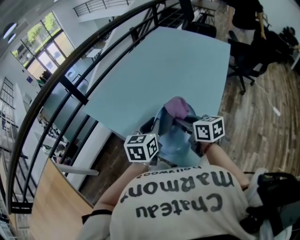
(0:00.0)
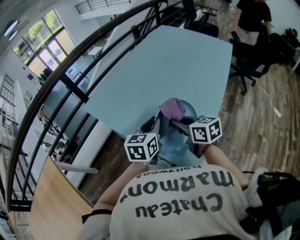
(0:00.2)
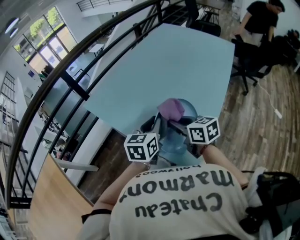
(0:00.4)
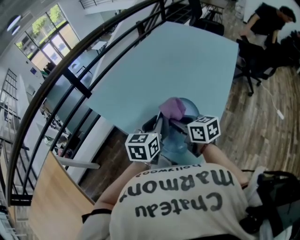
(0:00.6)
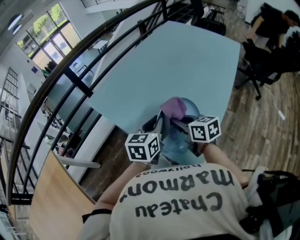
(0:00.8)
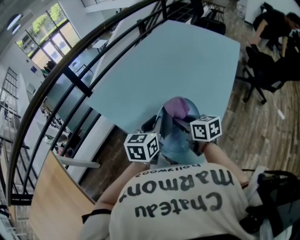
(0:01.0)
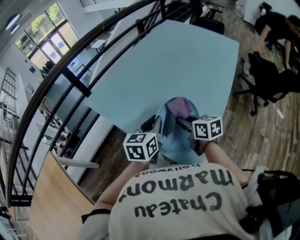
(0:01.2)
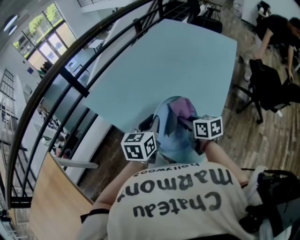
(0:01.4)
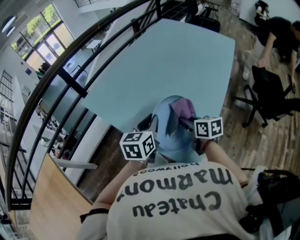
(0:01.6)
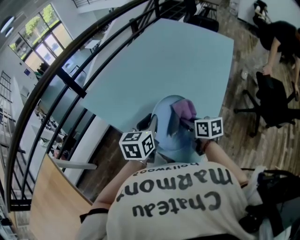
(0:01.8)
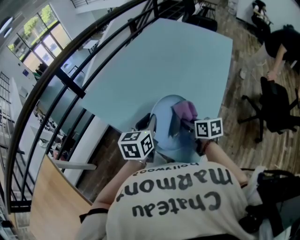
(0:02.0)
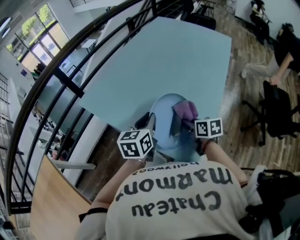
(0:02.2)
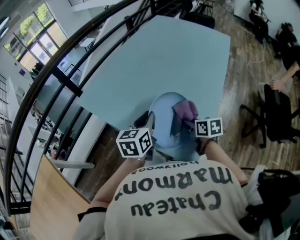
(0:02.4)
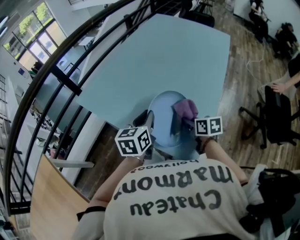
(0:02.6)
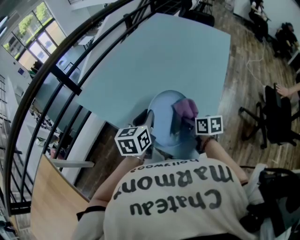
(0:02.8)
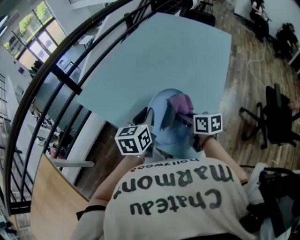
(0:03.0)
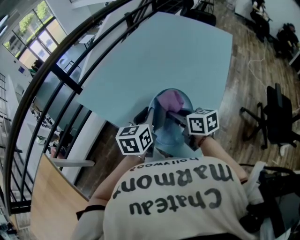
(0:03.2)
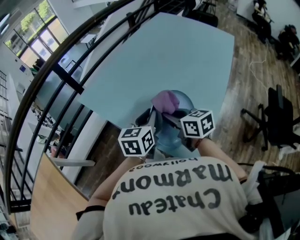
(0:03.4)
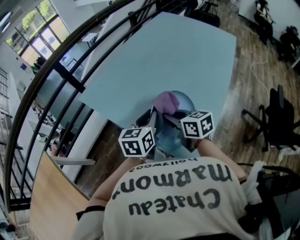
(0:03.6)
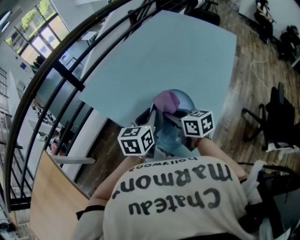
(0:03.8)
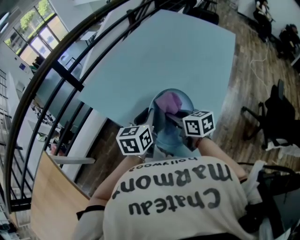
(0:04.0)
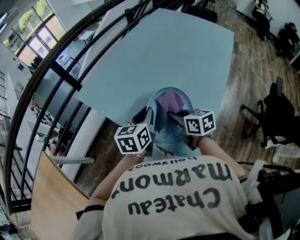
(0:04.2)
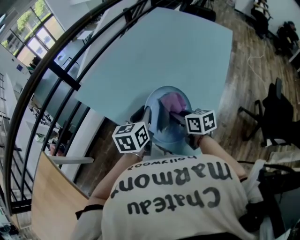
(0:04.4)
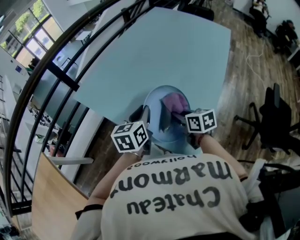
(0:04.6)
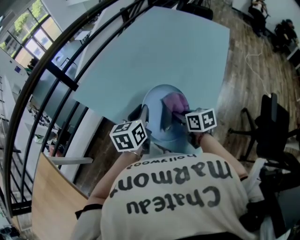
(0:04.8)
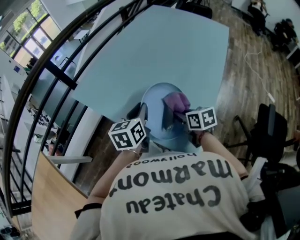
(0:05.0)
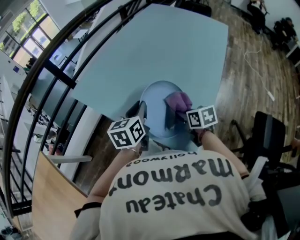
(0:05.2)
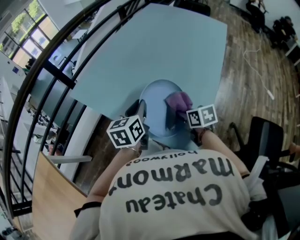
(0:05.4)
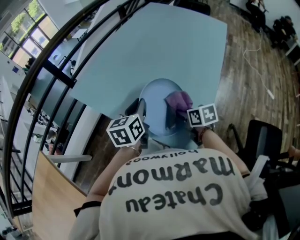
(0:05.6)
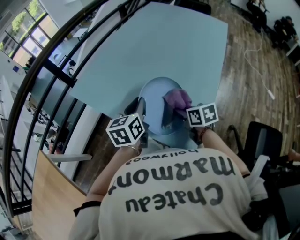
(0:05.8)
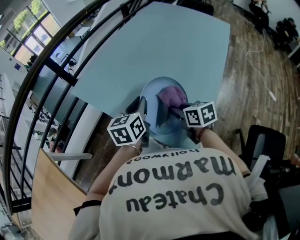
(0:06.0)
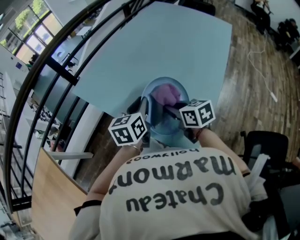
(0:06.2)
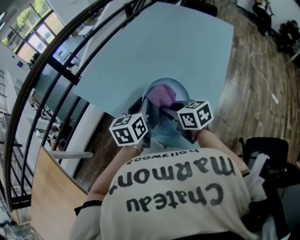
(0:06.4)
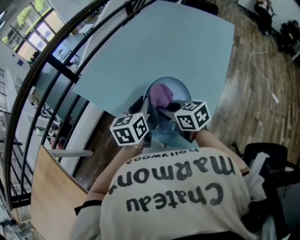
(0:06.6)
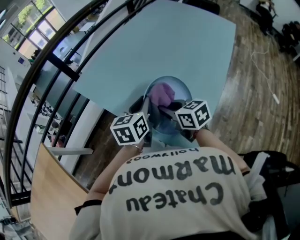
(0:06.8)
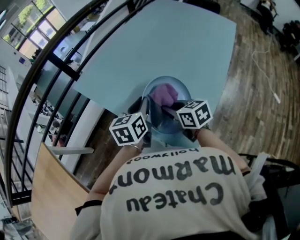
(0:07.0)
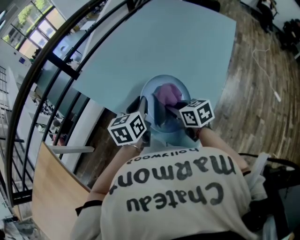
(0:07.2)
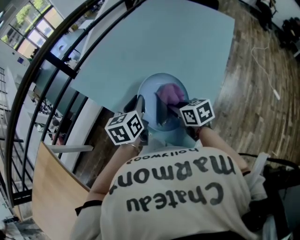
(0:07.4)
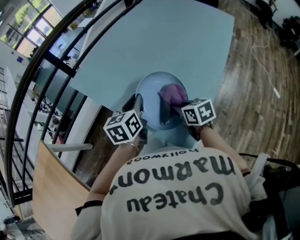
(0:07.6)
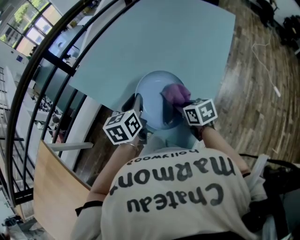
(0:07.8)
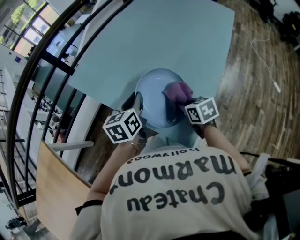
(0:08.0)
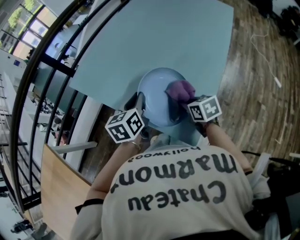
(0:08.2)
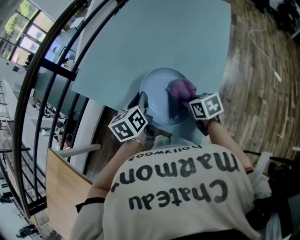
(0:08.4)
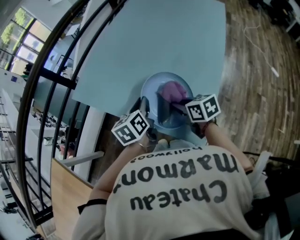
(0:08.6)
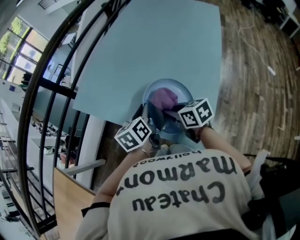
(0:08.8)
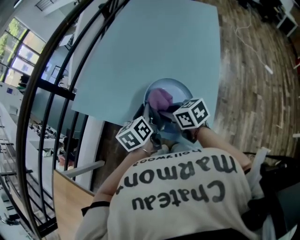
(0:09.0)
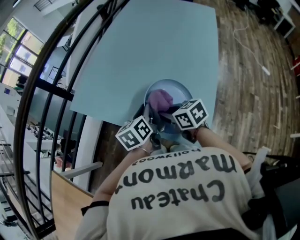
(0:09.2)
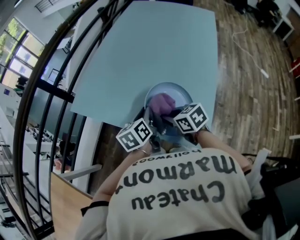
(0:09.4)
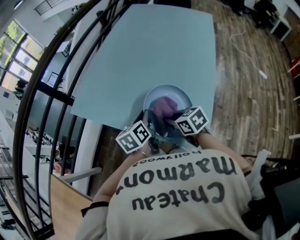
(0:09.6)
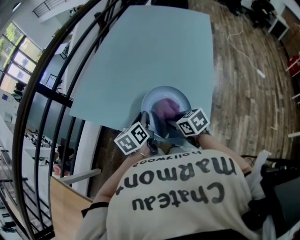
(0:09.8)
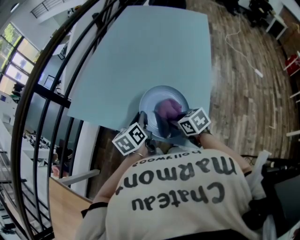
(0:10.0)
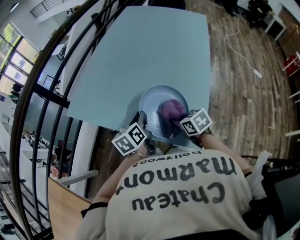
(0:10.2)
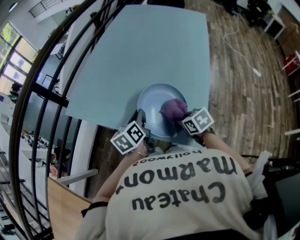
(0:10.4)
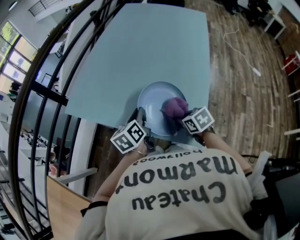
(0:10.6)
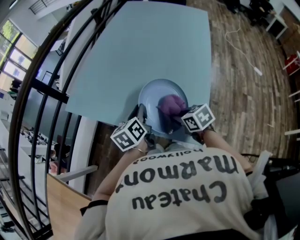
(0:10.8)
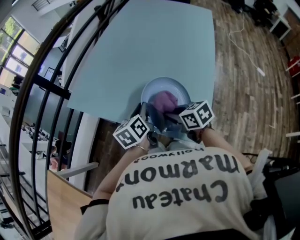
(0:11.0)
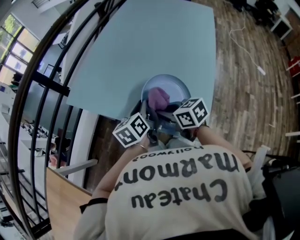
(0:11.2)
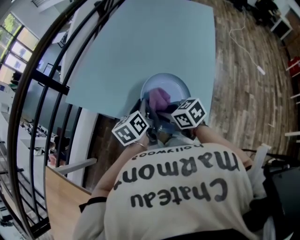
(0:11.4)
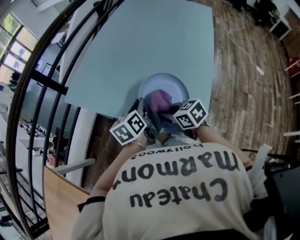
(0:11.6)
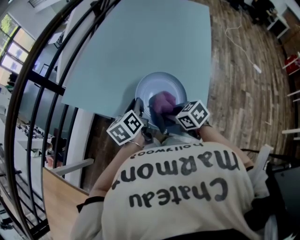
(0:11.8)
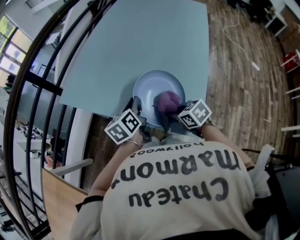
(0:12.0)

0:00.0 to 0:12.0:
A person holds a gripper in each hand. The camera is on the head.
0:00.0 to 0:01.6: The right gripper shifts roughly 5 cm downward.
0:01.6 to 0:03.0: The grippers stay close to where they were, moving slightly.
0:07.6 to 0:09.0: The right gripper shifts some 10 cm to the left and upward.
0:09.0 to 0:10.4: The right gripper shifts about 10 cm to the right, downward and backward, and changes its angle by roughly 20 degrees.
0:10.4 to 0:12.0: The right gripper travels to the left and back again, approximately 10 cm each way.

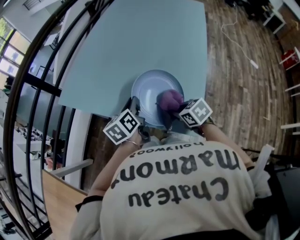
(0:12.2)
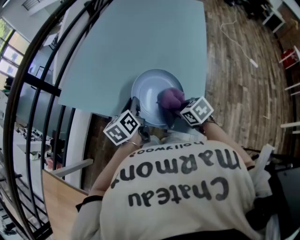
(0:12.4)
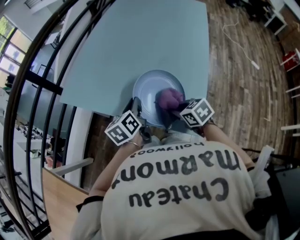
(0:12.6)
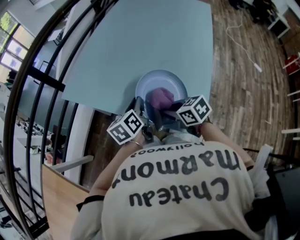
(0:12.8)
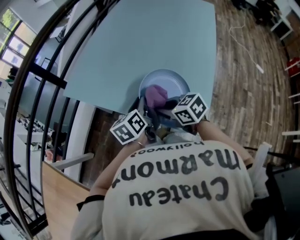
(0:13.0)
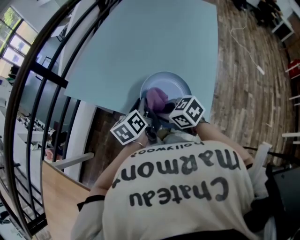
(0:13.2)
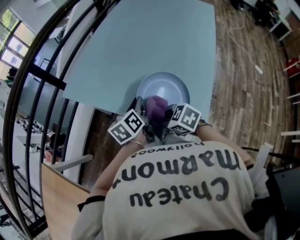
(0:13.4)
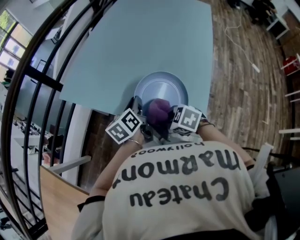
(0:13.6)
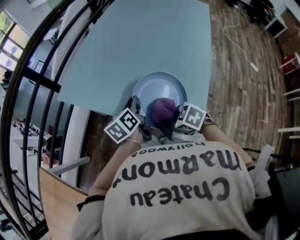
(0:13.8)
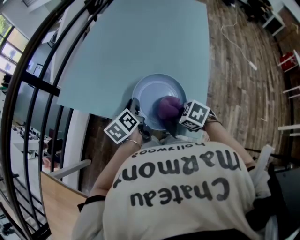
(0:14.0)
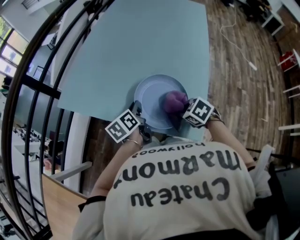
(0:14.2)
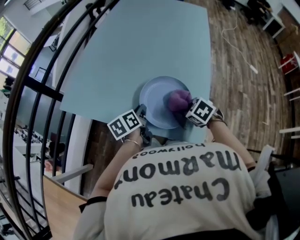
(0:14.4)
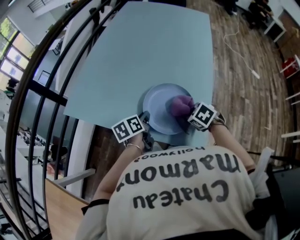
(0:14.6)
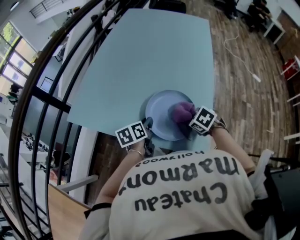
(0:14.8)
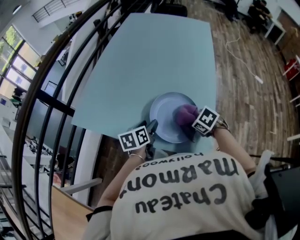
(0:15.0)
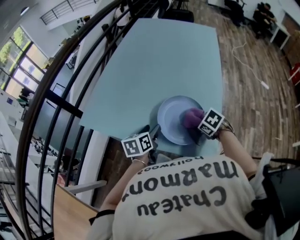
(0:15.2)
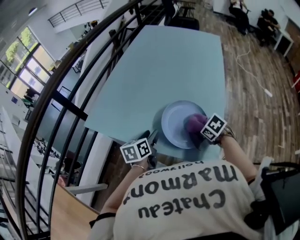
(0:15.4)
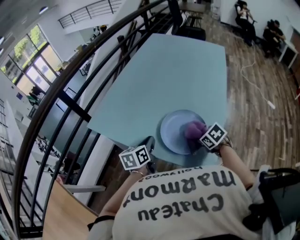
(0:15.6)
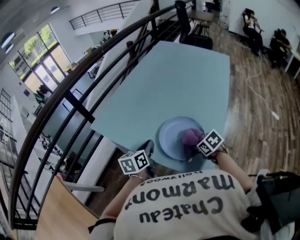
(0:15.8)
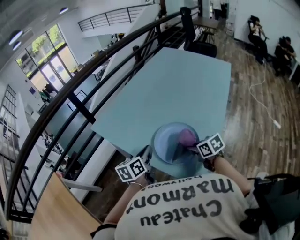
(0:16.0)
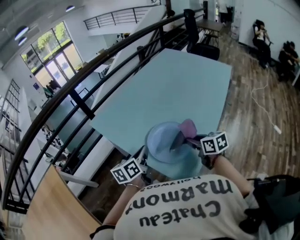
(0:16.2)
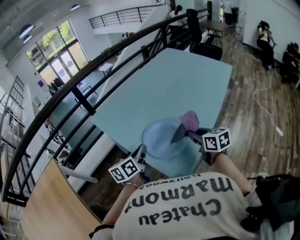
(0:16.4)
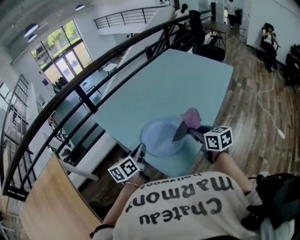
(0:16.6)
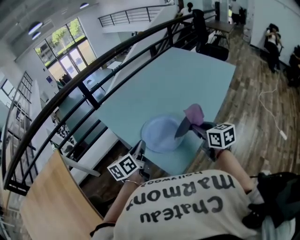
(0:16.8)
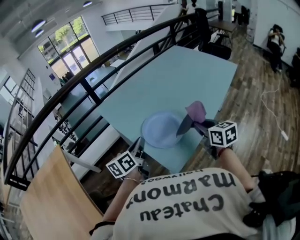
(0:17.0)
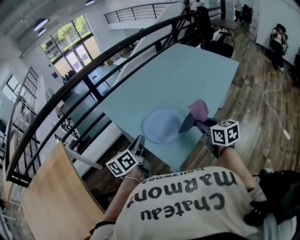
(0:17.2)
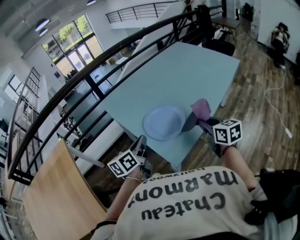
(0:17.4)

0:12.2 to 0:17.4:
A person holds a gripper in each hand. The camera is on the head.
0:12.2 to 0:14.0: The right gripper travels to the left and back again, about 10 cm each way, and rotates some 20 degrees.
0:14.0 to 0:15.6: The left gripper opens and closes again, while the right gripper goes approximately 10 cm to the right and forward.
0:15.6 to 0:17.4: The left gripper heads backward and upward, covering about 20 cm, and changes its angle by approximately 30 degrees. Meanwhile the right gripper goes about 20 cm upward and to the right, and tips its fingers upward by approximately 40 degrees.

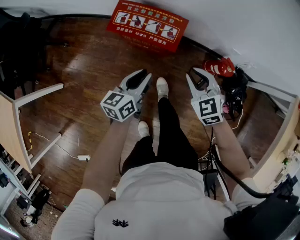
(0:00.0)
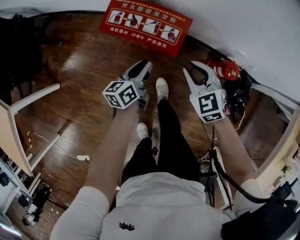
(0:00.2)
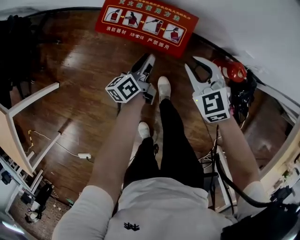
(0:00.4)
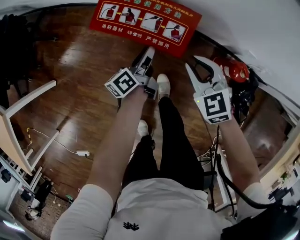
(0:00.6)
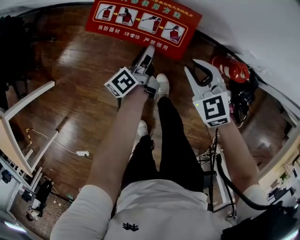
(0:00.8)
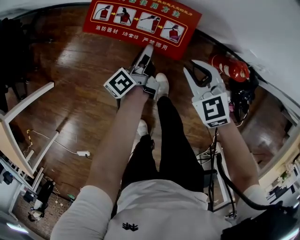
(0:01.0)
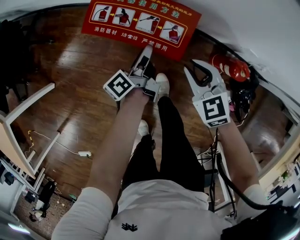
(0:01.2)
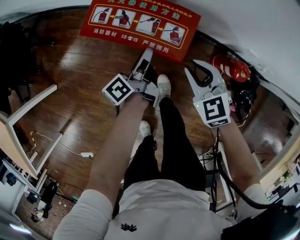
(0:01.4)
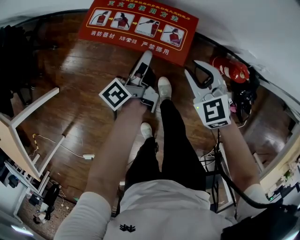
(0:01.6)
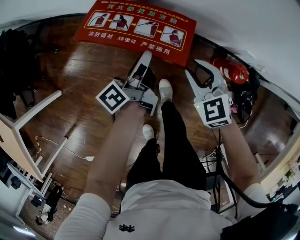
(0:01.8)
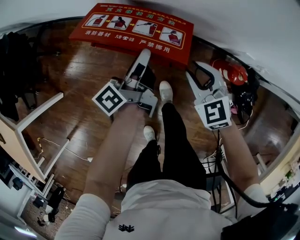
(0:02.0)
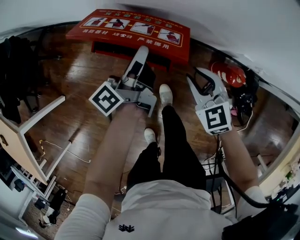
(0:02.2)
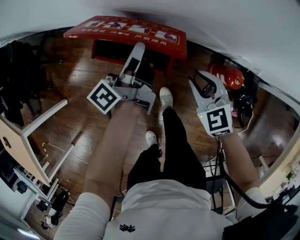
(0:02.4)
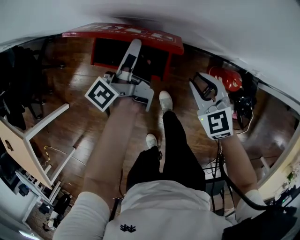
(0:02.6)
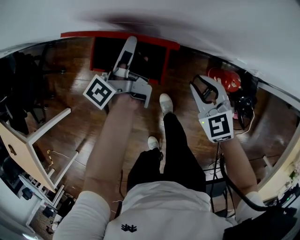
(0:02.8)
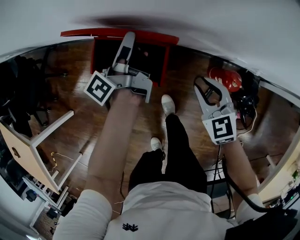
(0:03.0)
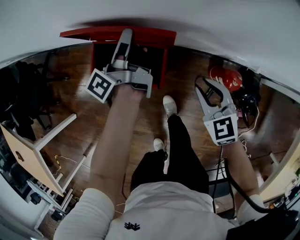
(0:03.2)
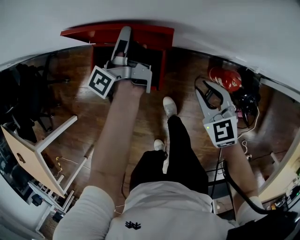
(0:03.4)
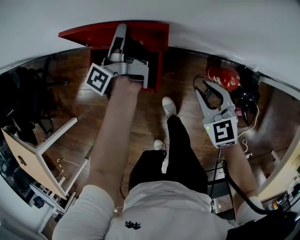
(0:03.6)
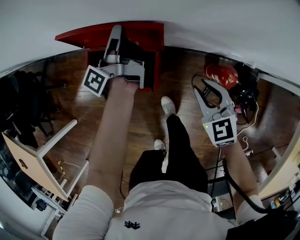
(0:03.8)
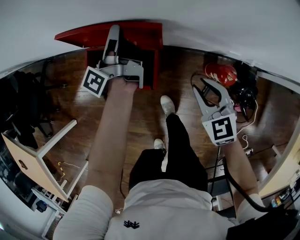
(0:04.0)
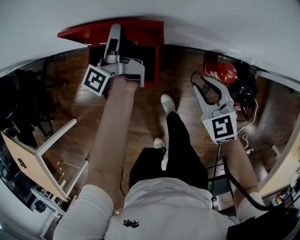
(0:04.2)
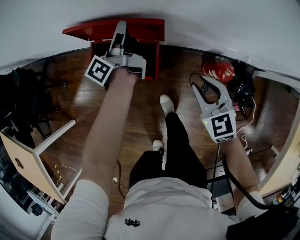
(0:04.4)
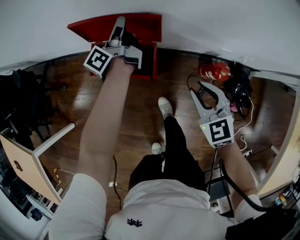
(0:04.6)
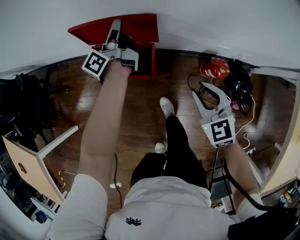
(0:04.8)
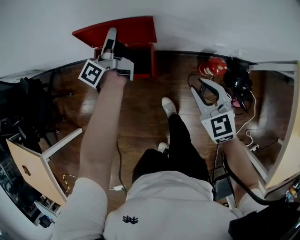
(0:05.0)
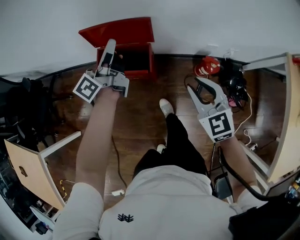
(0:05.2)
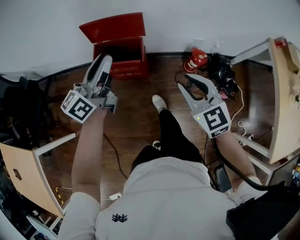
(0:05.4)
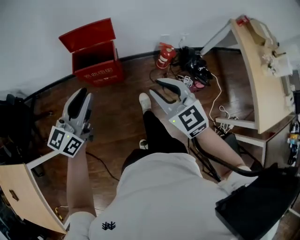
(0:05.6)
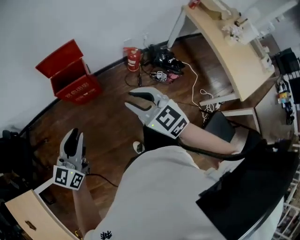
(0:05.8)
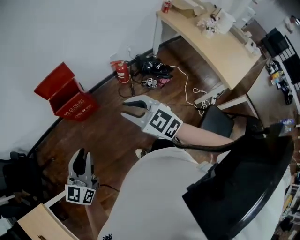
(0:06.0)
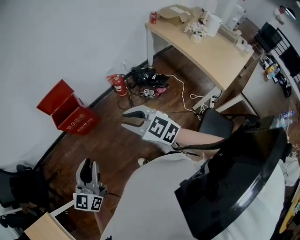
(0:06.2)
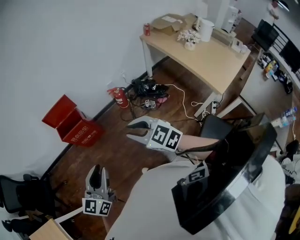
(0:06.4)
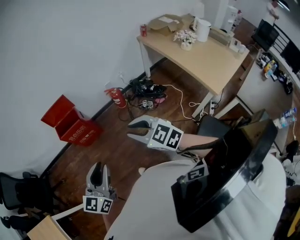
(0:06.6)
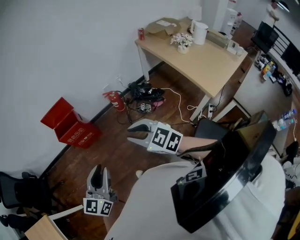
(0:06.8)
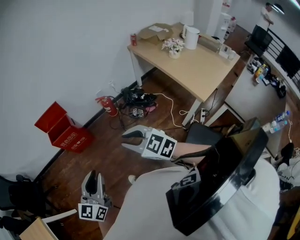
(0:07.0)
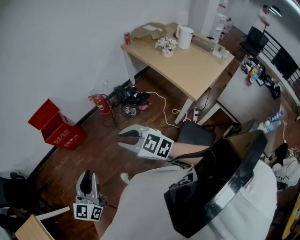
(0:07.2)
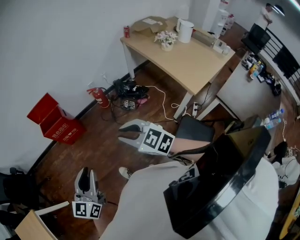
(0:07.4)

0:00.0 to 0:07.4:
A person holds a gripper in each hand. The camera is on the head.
0:00.0 to 0:01.4: Both grippers move forward and downward, approximately 15 cm. The left gripper rolls counterclockwise, seen from behind, by roughly 50 degrees.
0:01.4 to 0:03.0: The left gripper travels upward and forward by some 20 cm; the right gripper shifts roughly 10 cm to the right and upward.
0:03.0 to 0:04.4: The grippers stay close to where they were, moving slightly.
0:04.4 to 0:06.0: The left gripper shifts some 60 cm backward, and rotates around the line of its fingers by some 60 degrees, clockwise from behind, while the right gripper goes approximately 40 cm backward and upward.
0:06.0 to 0:07.4: The right gripper travels backward and to the right by approximately 25 cm; the left gripper heads to the right and backward, covering roughly 25 cm.
